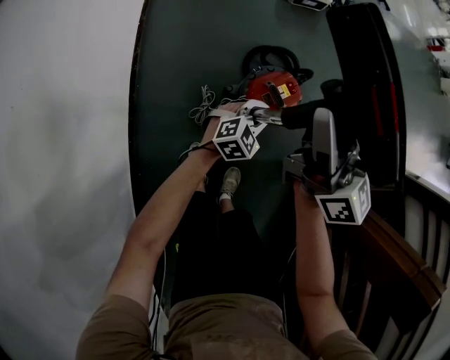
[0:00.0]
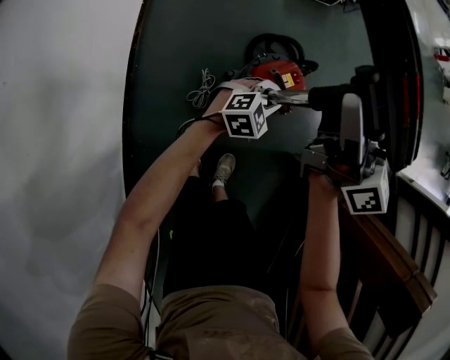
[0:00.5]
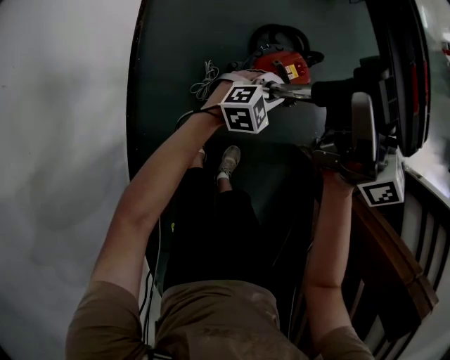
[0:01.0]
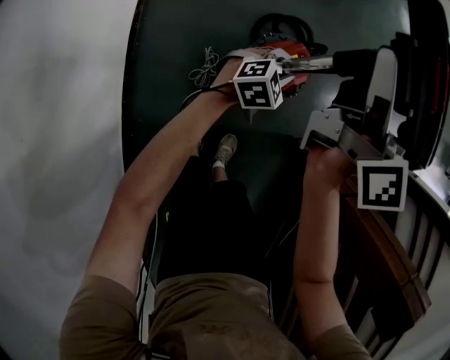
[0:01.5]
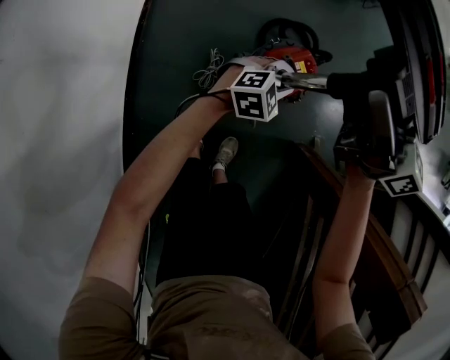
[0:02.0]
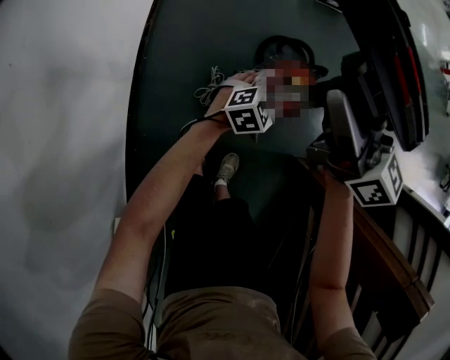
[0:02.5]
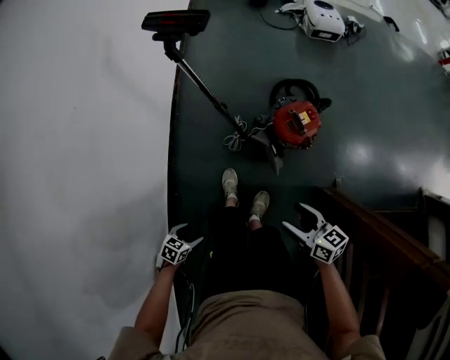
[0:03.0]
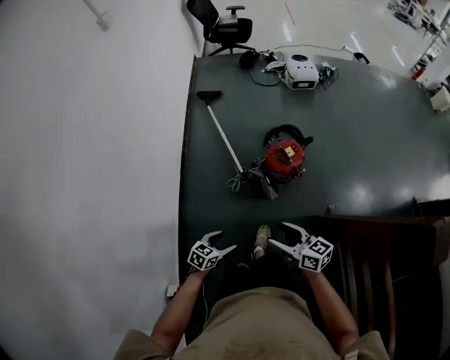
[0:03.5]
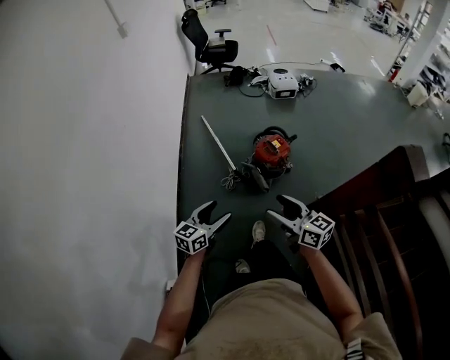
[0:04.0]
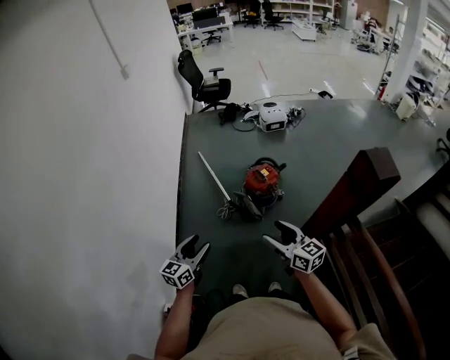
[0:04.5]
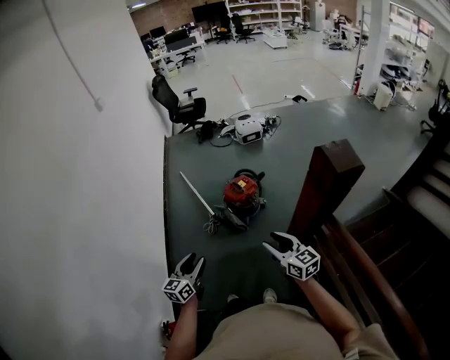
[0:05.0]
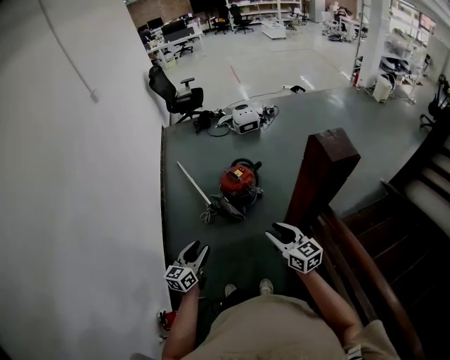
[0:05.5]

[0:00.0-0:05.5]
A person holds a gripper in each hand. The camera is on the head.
0:00.0 to 0:02.0: The right gripper changes its angle by some 30 degrees.
0:02.0 to 0:03.5: The left gripper moves backward and to the left, about 40 cm, rotates around the line of its fingers by approximately 50 degrees, counterclockwise from behind, and opens. The right gripper shifts roughly 35 cm backward, and turns by about 30 degrees.
0:03.5 to 0:05.5: The right gripper shifts about 35 cm backward, to the right and upward, changes its angle by about 30 degrees, and closes up, while the left gripper moves upward, backward and to the right, some 35 cm, tilts its fingers approximately 30 degrees upward, and closes.

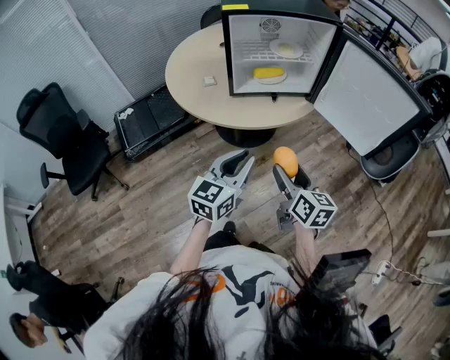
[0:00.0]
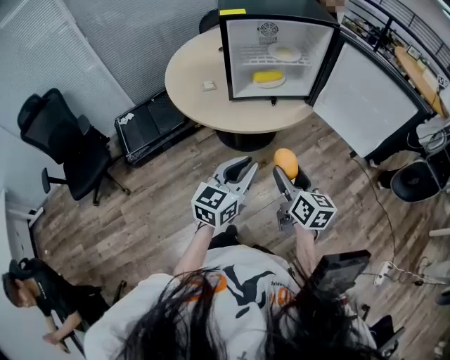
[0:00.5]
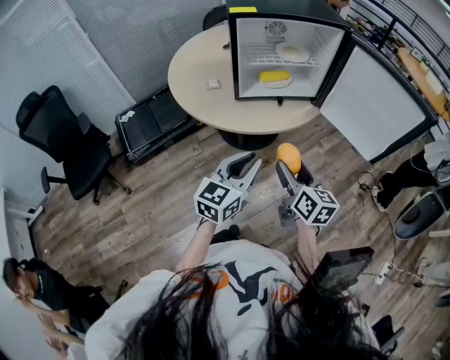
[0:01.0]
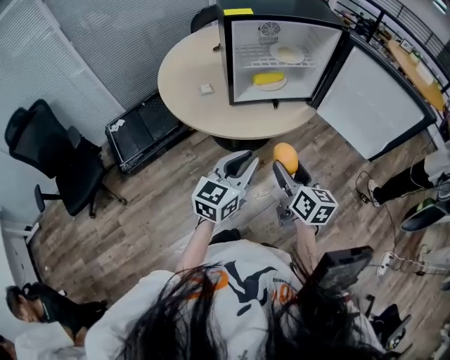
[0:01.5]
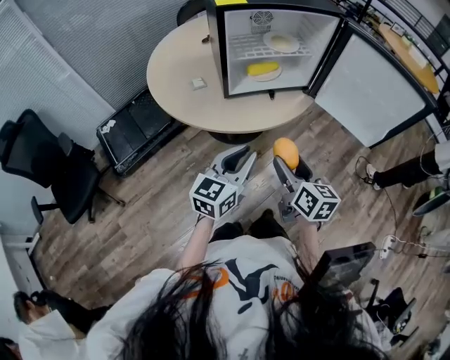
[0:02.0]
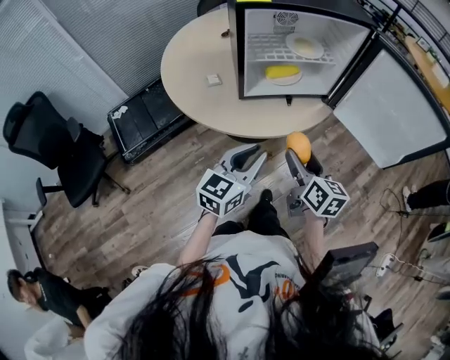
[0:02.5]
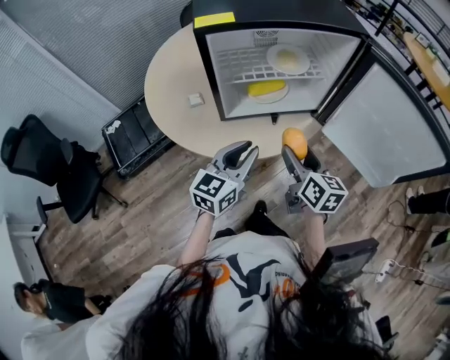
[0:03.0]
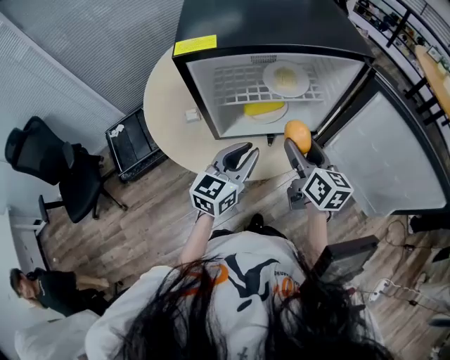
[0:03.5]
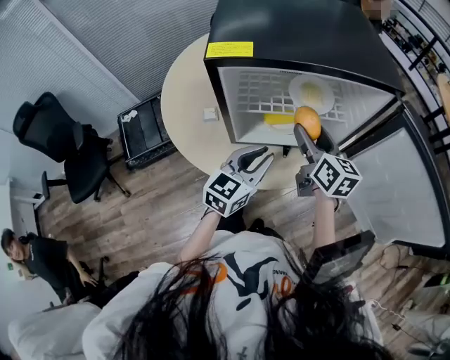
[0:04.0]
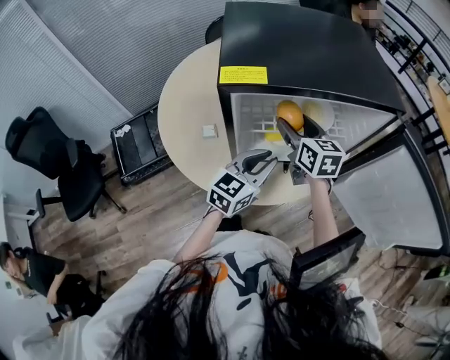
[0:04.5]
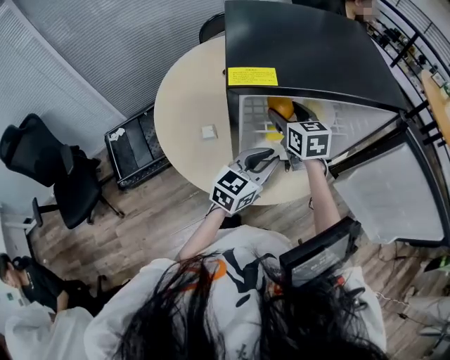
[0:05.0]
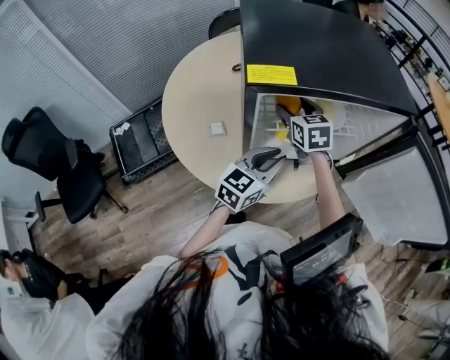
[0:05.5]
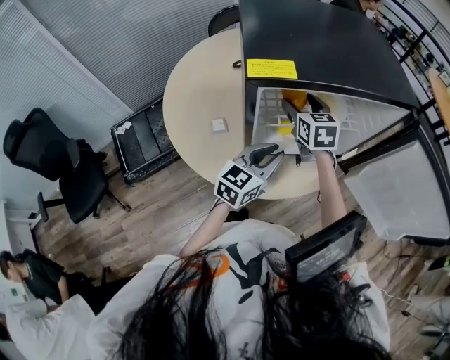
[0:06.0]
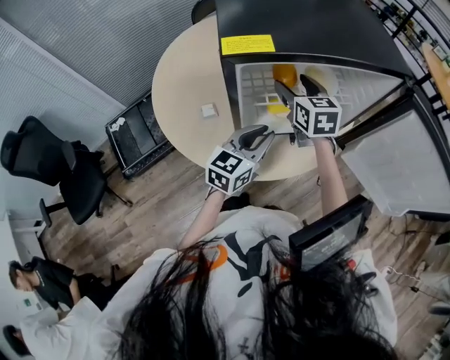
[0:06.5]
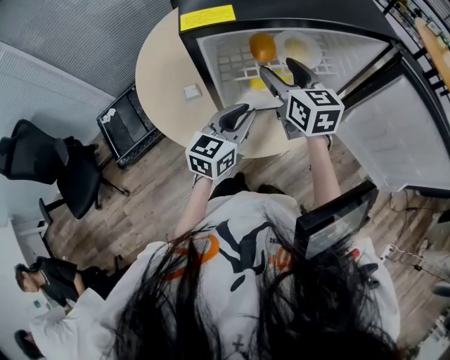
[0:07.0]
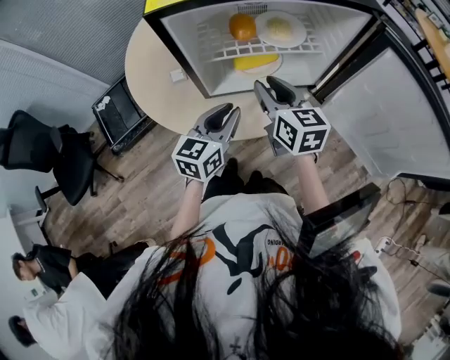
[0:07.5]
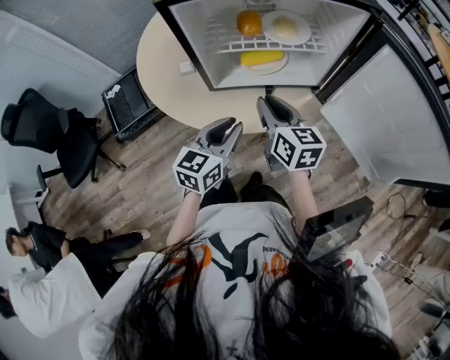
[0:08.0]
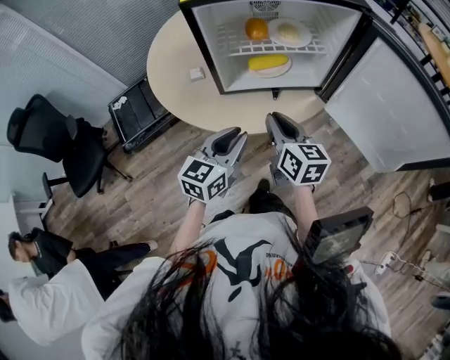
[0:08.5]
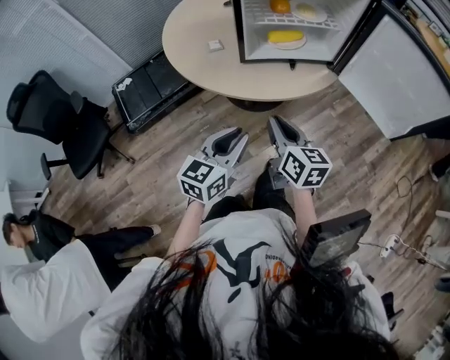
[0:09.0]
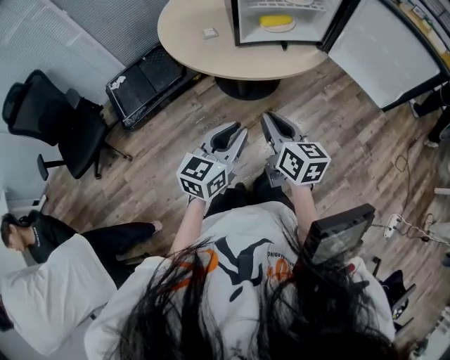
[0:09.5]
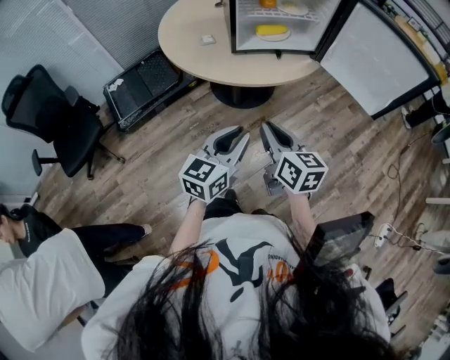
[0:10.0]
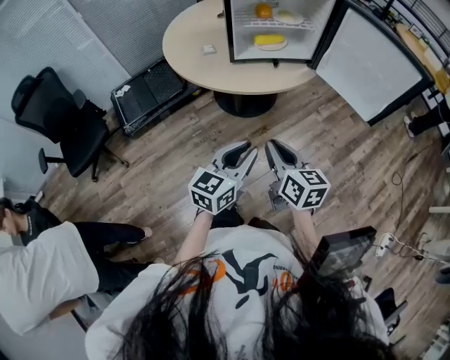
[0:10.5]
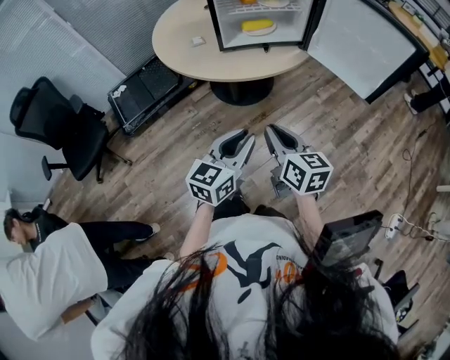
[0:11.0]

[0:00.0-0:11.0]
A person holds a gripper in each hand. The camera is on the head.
0:00.0 to 0:02.0: The right gripper ends up about 5 cm from where it was. Meanwhile the left gripper moves forward, roughly 5 cm.
0:02.0 to 0:03.5: The grippers both shift forward by about 25 cm.
0:03.5 to 0:05.5: The right gripper goes some 25 cm forward and to the left, and swivels approximately 40 degrees, while the left gripper goes about 5 cm forward.
0:05.5 to 0:07.5: The left gripper moves backward, some 5 cm. The right gripper moves backward and to the right, approximately 20 cm, rotates roughly 20 degrees, and closes its fingers.
0:07.5 to 0:09.0: The two grippers go some 25 cm backward.
0:09.0 to 0:11.0: Both grippers move backward and to the right, roughly 15 cm.

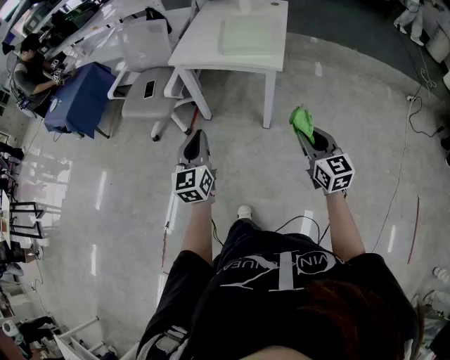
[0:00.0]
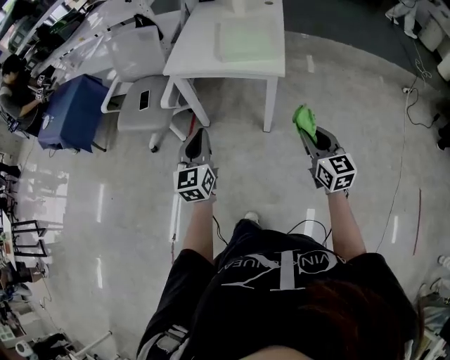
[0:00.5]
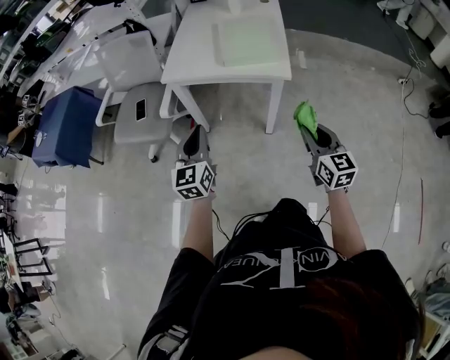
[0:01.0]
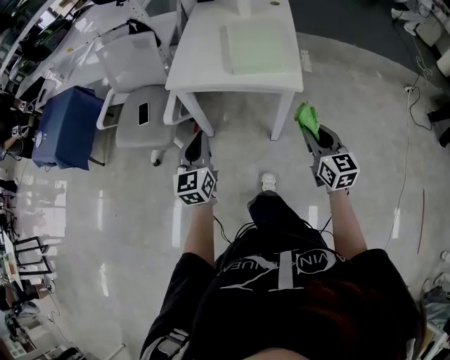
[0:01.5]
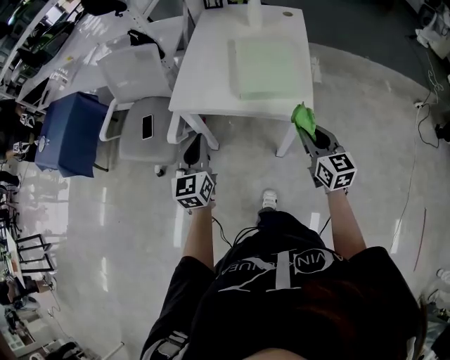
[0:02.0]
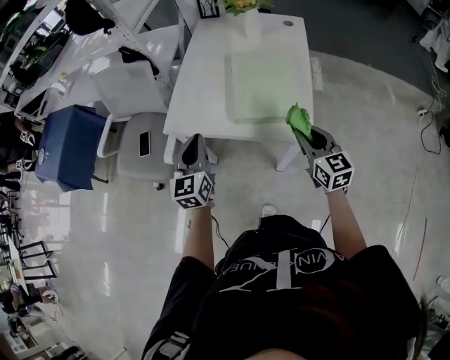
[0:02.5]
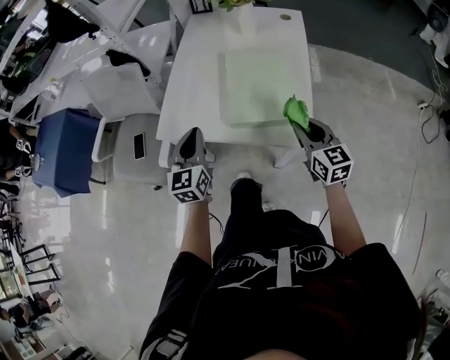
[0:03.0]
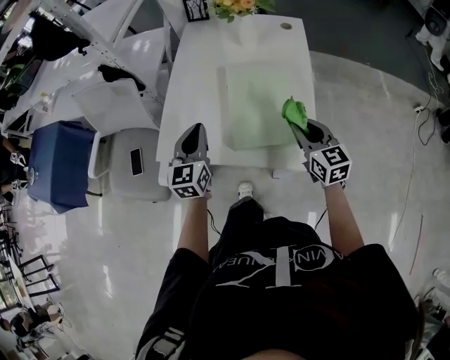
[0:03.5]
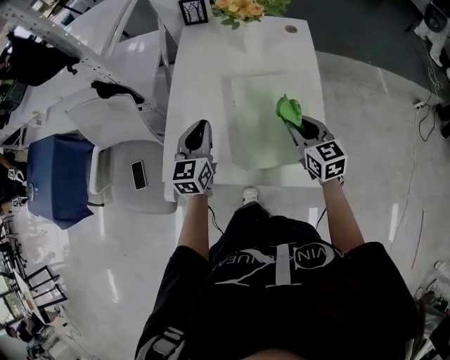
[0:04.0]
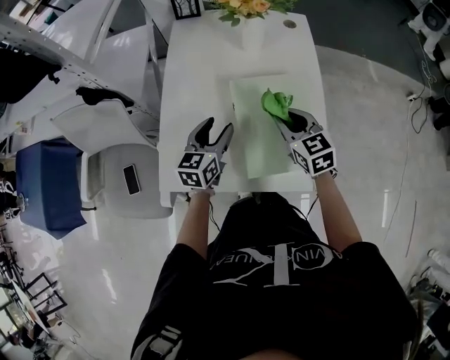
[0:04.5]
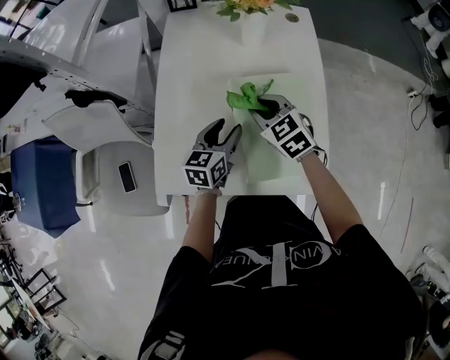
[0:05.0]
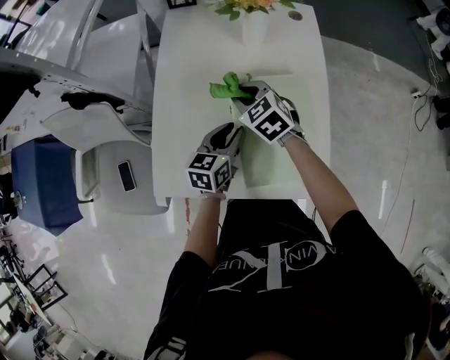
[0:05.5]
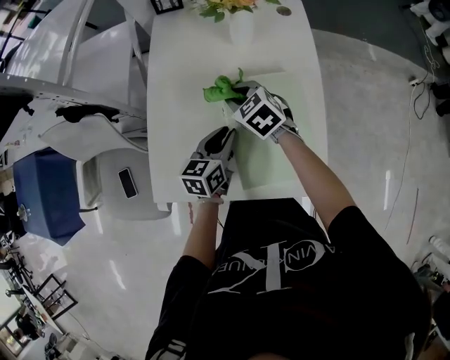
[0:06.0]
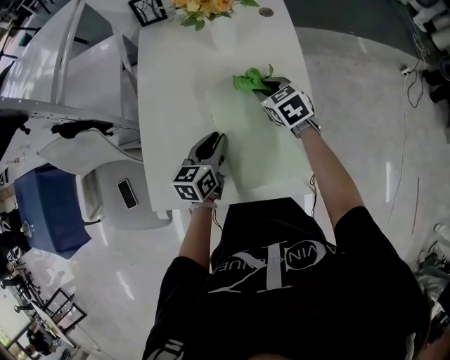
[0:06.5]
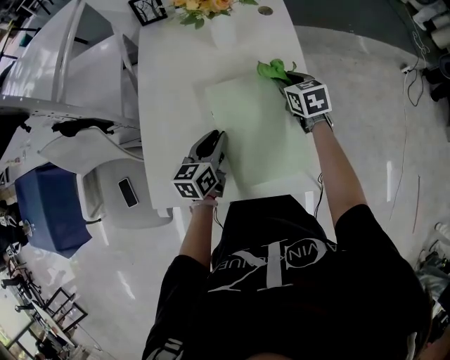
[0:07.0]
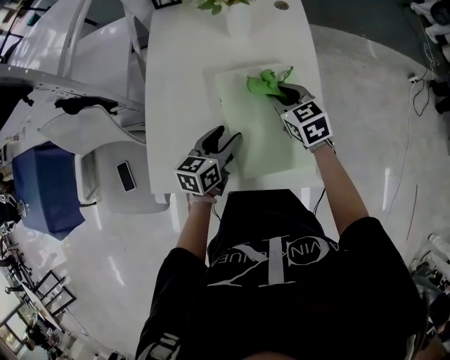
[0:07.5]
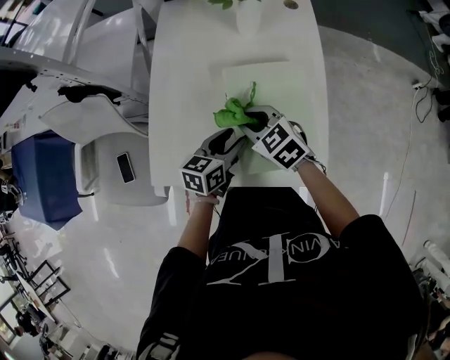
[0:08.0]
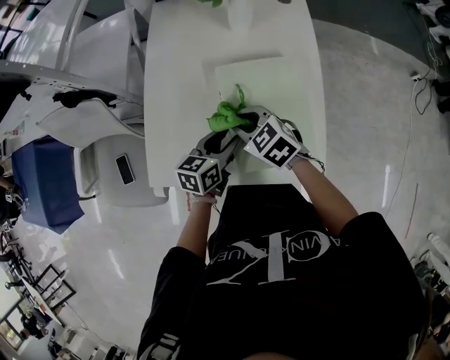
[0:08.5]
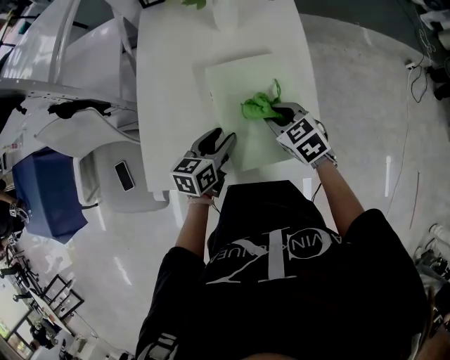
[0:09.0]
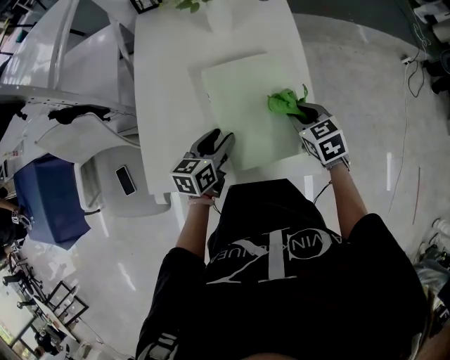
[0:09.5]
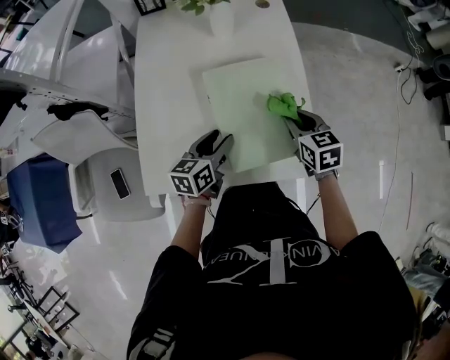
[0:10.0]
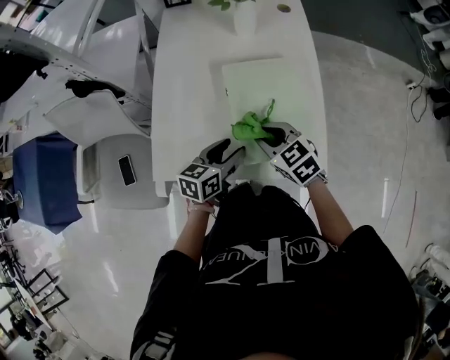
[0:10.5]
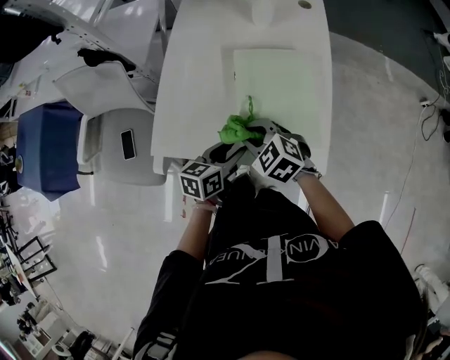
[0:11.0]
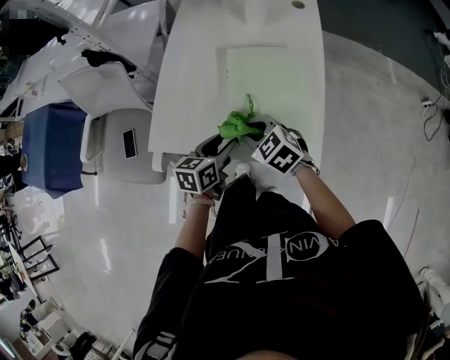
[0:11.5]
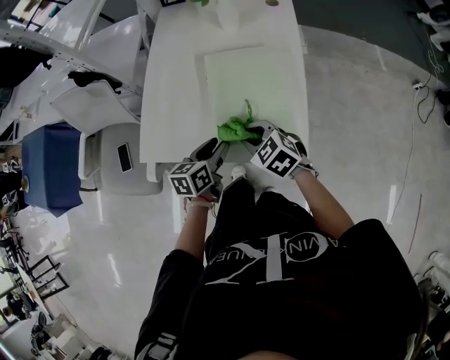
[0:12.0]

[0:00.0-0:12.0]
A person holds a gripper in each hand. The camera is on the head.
0:00.0 to 0:02.0: The two grippers go approximately 30 cm forward.
0:02.0 to 0:04.0: Both grippers move forward, some 30 cm.
0:04.0 to 0:06.0: The right gripper shifts roughly 20 cm forward, to the left and downward, and rotates approximately 30 degrees. The left gripper shifts some 15 cm to the right and downward, changes its angle by about 30 degrees, and opens up.
0:06.0 to 0:08.0: The left gripper is displaced backward by approximately 5 cm, and opens its fingers. Meanwhile the right gripper travels backward by about 10 cm, and travels to the right and back again, approximately 20 cm each way.
0:08.0 to 0:10.0: The right gripper is displaced to the right by about 20 cm, and changes its angle by approximately 40 degrees.
0:10.0 to 0:12.0: The right gripper ends up some 15 cm from where it was, and swivels roughly 40 degrees, while the left gripper moves about 10 cm.
